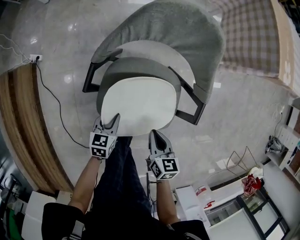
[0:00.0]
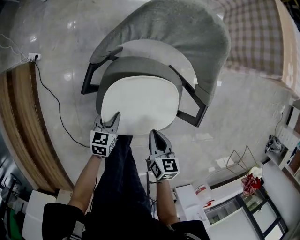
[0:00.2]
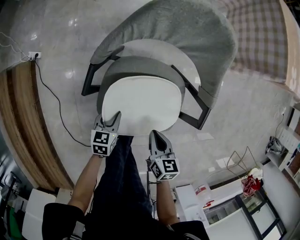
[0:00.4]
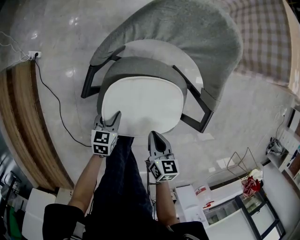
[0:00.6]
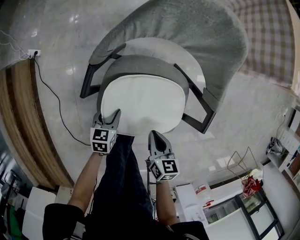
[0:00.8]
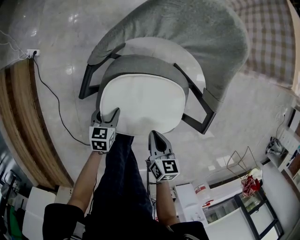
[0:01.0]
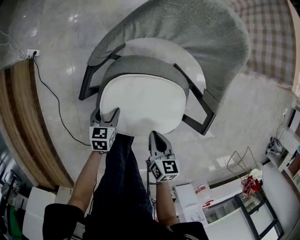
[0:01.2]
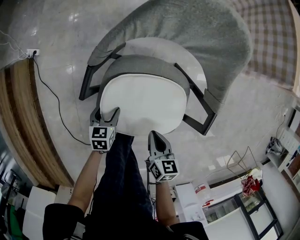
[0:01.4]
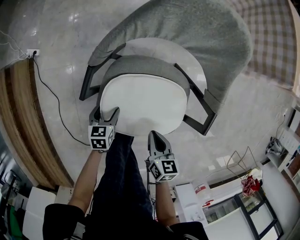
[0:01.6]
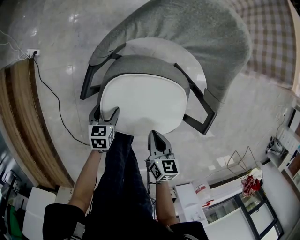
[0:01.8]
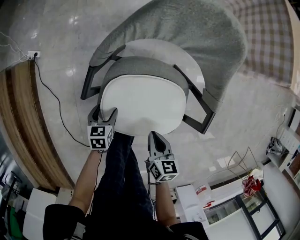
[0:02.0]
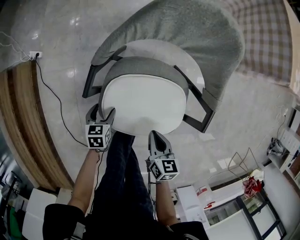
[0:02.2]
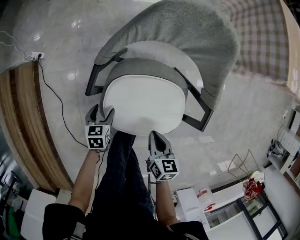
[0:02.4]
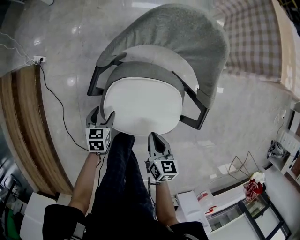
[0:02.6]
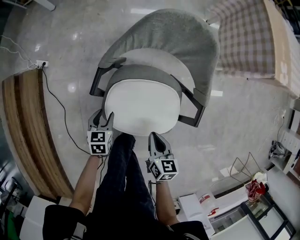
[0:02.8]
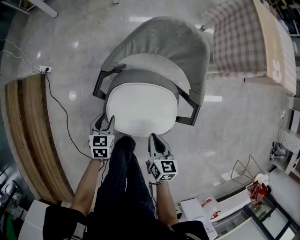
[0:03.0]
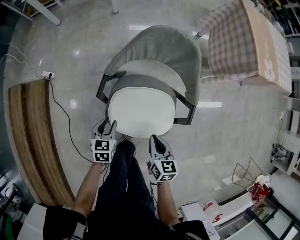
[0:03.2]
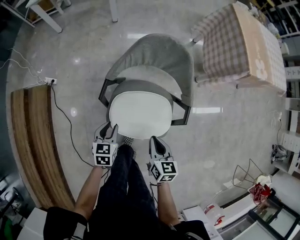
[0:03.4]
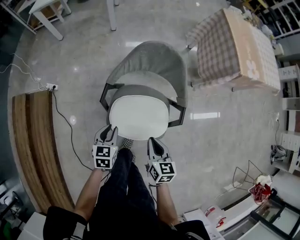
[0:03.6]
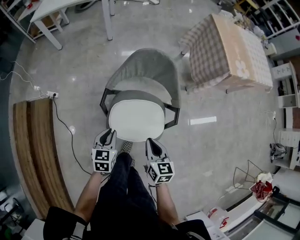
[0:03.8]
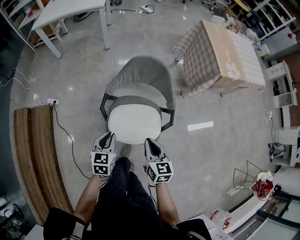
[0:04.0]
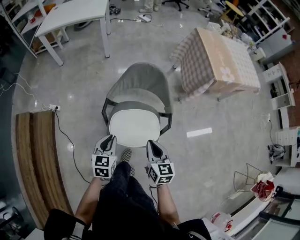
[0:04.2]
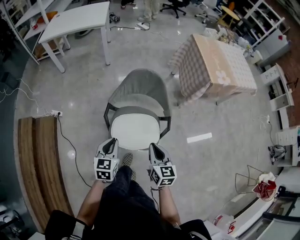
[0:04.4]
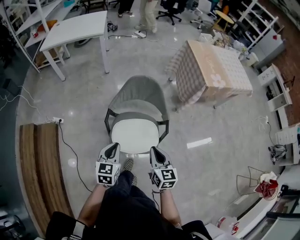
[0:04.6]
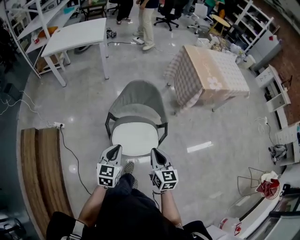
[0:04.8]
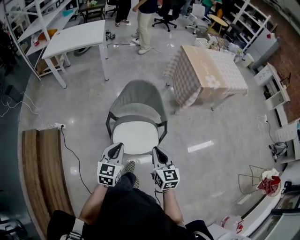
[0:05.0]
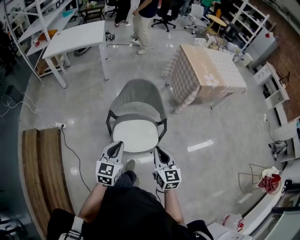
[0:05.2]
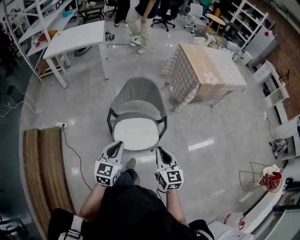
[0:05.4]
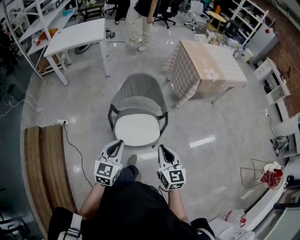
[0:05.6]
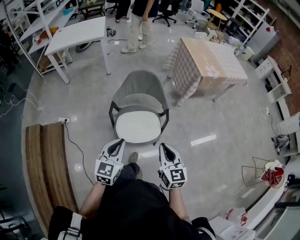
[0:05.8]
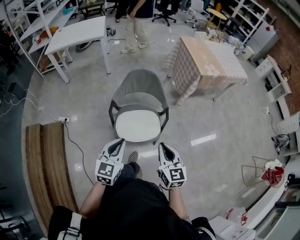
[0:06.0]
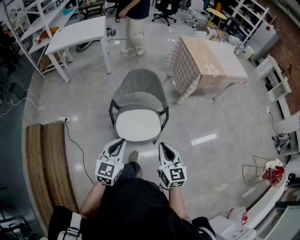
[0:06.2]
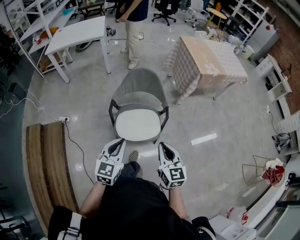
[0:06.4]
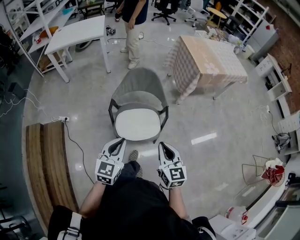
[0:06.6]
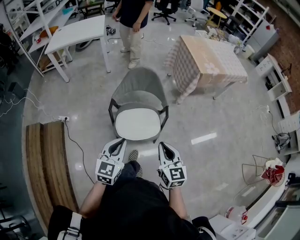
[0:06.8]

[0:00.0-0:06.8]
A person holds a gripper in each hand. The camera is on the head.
0:00.0 to 0:01.4: Both grippers move downward, about 10 cm. The left gripper opens its fingers.
0:01.4 to 0:02.8: The two grippers go approximately 10 cm upward.
0:02.8 to 0:04.0: Both grippers travel together upward, approximately 30 cm. The left gripper closes.
0:04.0 to 0:05.4: The grippers both shift upward and backward by some 25 cm. The left gripper turns by some 20 degrees.
0:05.4 to 0:06.8: The two grippers go some 5 cm backward.

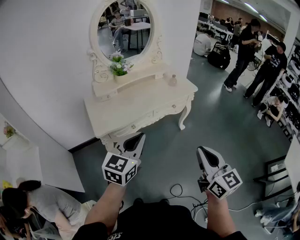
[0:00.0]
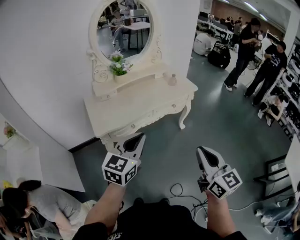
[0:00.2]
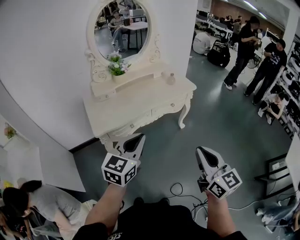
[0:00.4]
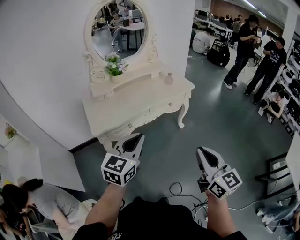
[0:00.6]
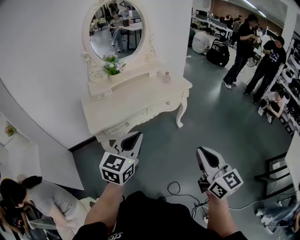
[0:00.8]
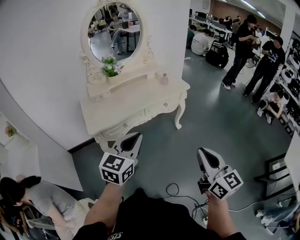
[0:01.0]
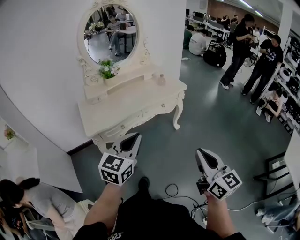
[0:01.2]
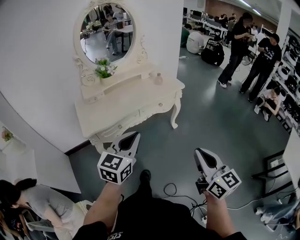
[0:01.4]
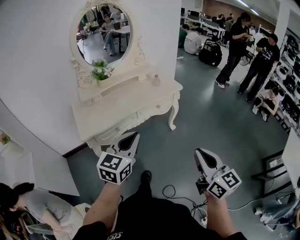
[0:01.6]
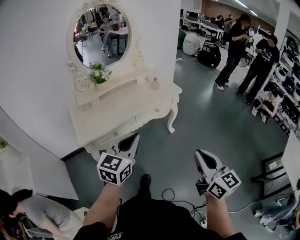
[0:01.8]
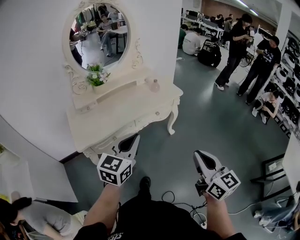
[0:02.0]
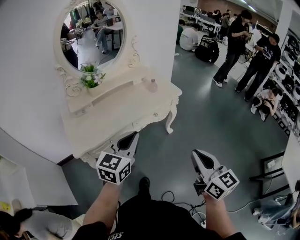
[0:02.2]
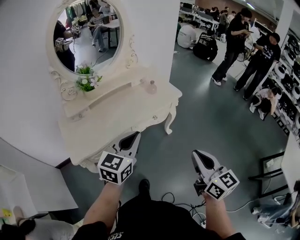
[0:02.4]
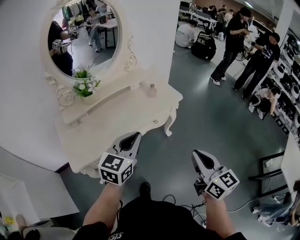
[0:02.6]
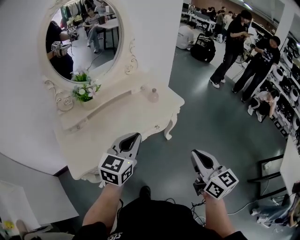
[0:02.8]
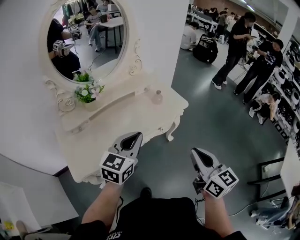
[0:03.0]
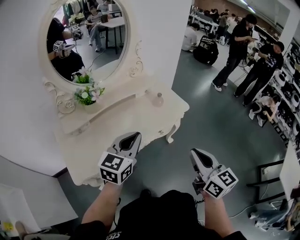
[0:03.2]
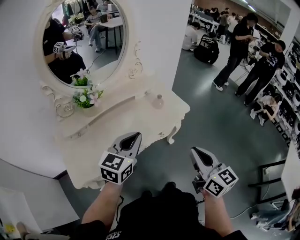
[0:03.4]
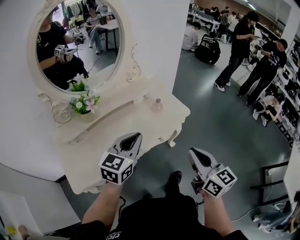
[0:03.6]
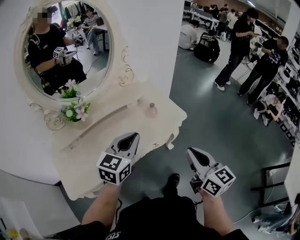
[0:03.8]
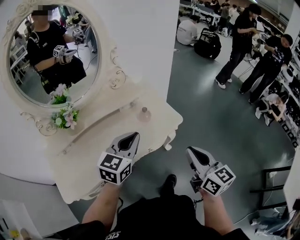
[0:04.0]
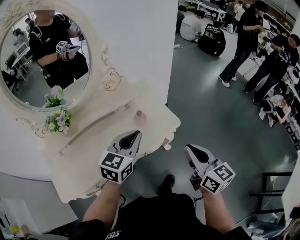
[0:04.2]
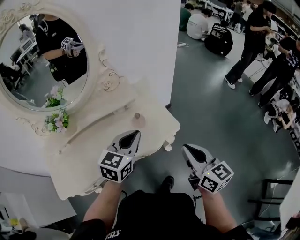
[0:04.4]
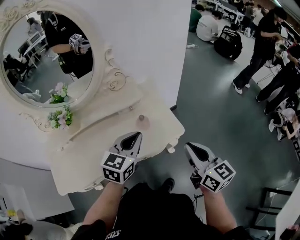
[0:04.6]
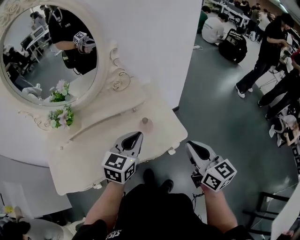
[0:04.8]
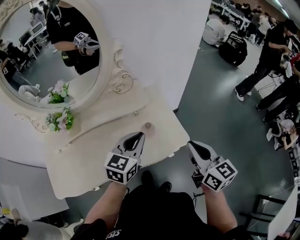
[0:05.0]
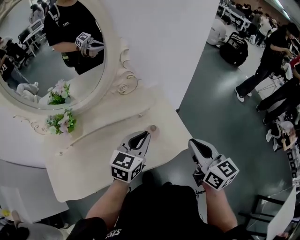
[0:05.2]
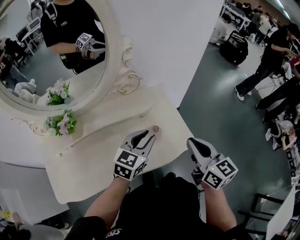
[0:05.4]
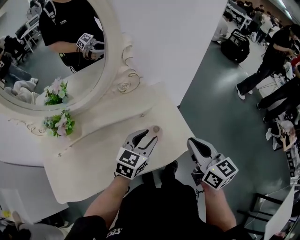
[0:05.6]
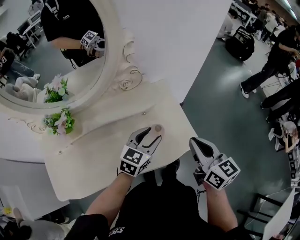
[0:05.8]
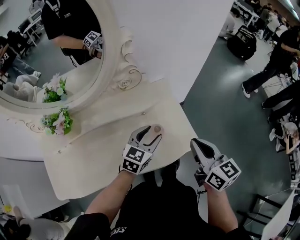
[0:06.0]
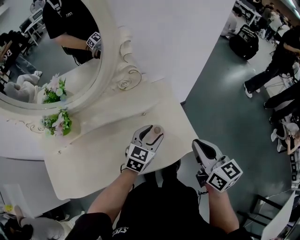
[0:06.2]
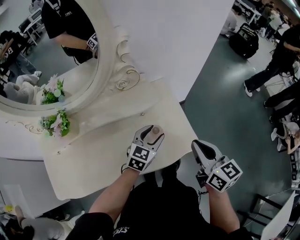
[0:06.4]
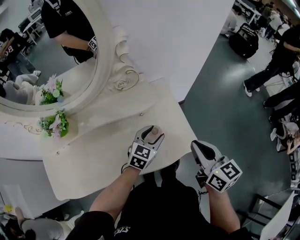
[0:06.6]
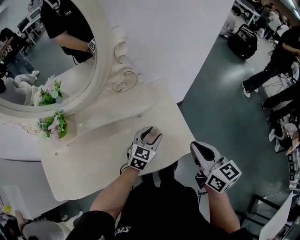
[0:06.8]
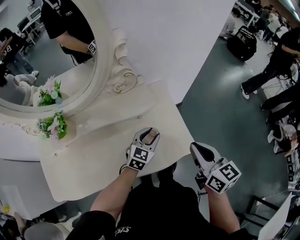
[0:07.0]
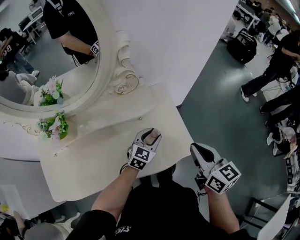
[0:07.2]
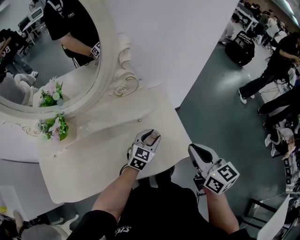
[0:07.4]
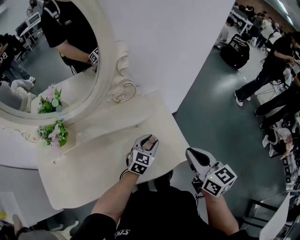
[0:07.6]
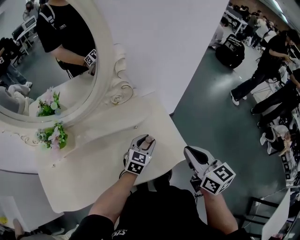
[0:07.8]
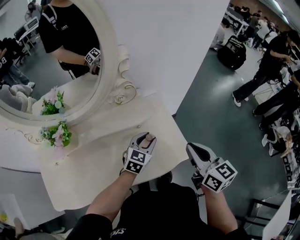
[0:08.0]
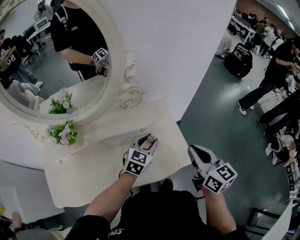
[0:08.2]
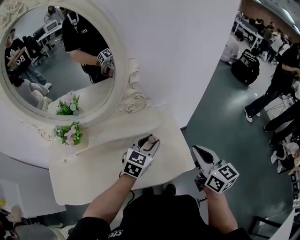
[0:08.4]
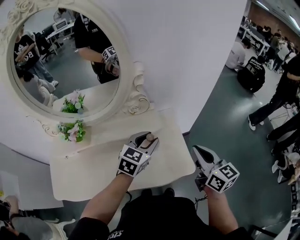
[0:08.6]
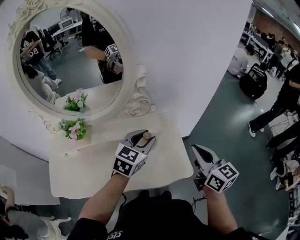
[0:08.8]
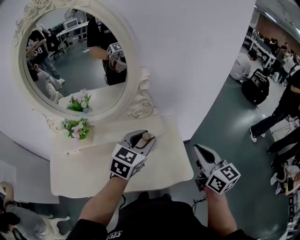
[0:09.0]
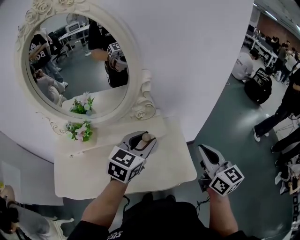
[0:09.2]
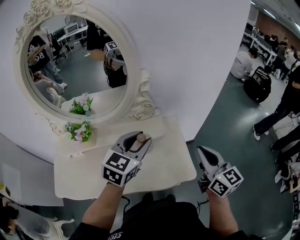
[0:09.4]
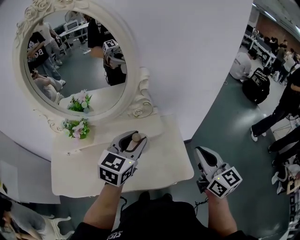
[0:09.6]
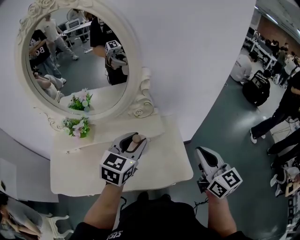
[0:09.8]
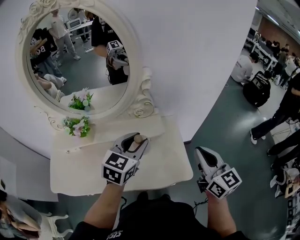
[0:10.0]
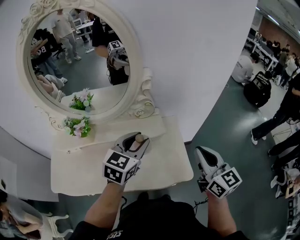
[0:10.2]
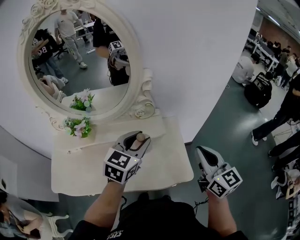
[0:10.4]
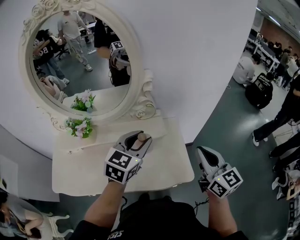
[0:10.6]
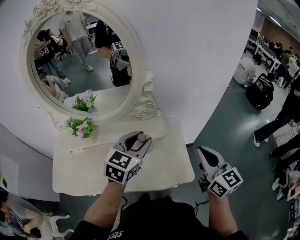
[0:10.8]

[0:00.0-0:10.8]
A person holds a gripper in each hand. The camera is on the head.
0:00.0 to 0:01.6: The two grippers go approximately 10 cm to the right.
0:01.6 to 0:03.0: Both grippers travel together forward, approximately 30 cm.
0:03.0 to 0:04.6: The two grippers go some 35 cm forward and to the right.
0:04.6 to 0:06.2: The right gripper shifts roughly 15 cm forward. Meanwhile the left gripper moves downward and forward, roughly 20 cm, and opens up.
0:06.2 to 0:07.8: The grippers stay close to where they were, moving slightly.
0:07.8 to 0:09.2: The right gripper goes some 10 cm upward and forward. Meanwhile the left gripper travels upward by about 25 cm.
0:09.2 to 0:10.8: The grippers stay close to where they were, moving slightly.

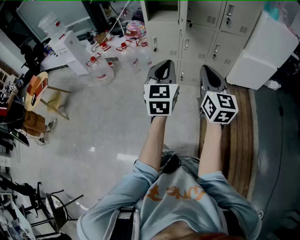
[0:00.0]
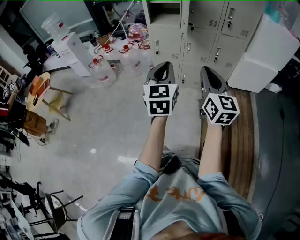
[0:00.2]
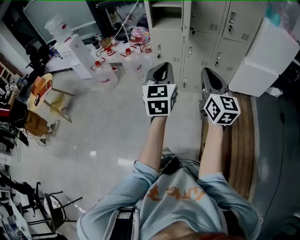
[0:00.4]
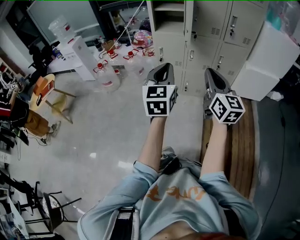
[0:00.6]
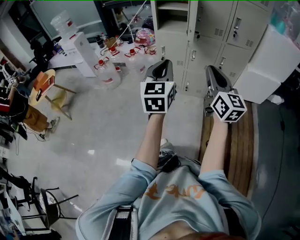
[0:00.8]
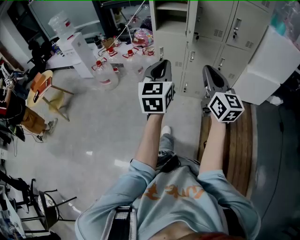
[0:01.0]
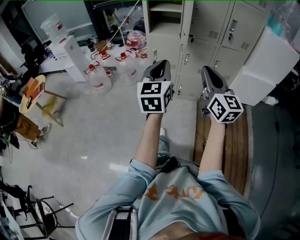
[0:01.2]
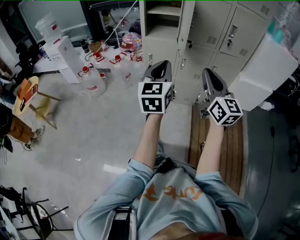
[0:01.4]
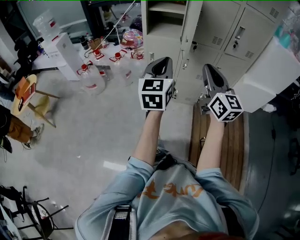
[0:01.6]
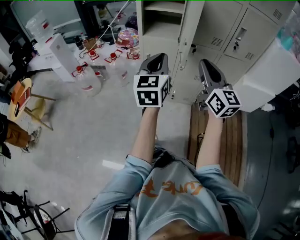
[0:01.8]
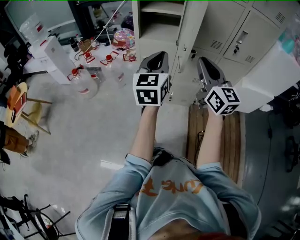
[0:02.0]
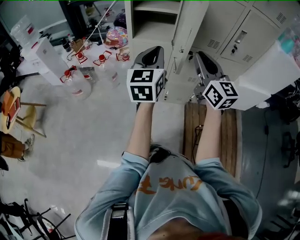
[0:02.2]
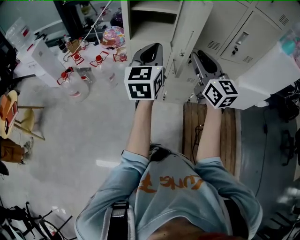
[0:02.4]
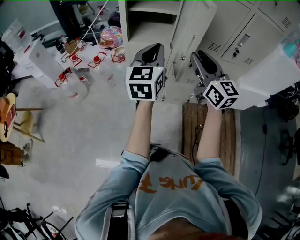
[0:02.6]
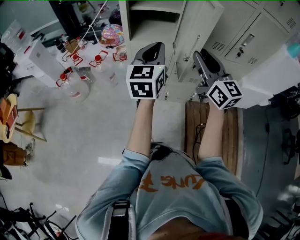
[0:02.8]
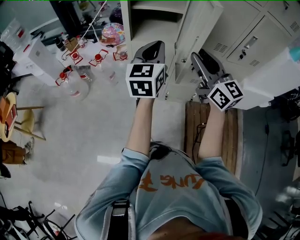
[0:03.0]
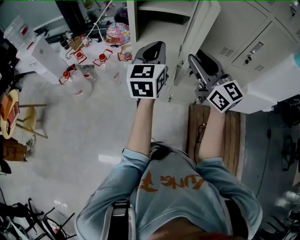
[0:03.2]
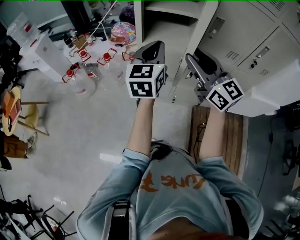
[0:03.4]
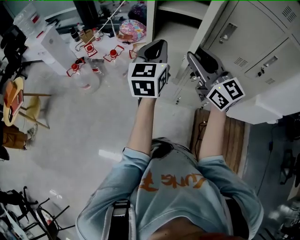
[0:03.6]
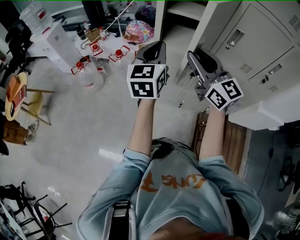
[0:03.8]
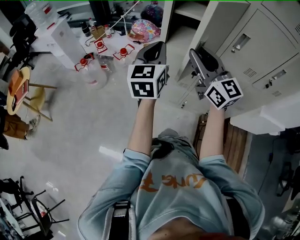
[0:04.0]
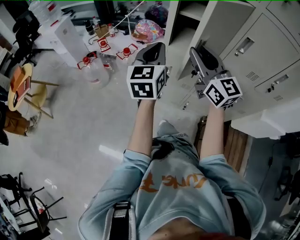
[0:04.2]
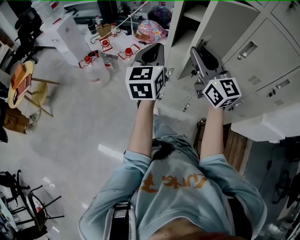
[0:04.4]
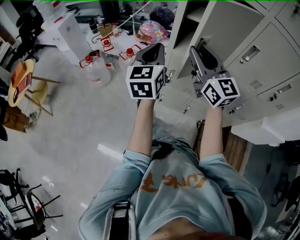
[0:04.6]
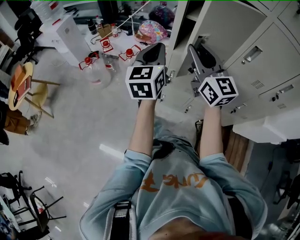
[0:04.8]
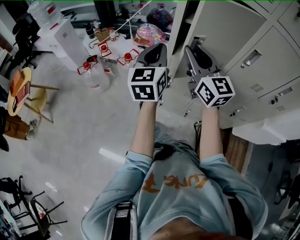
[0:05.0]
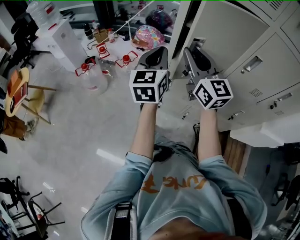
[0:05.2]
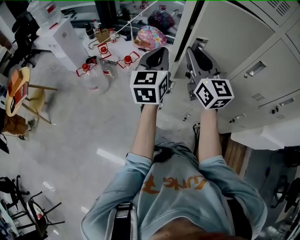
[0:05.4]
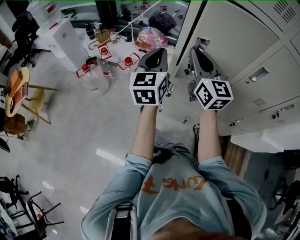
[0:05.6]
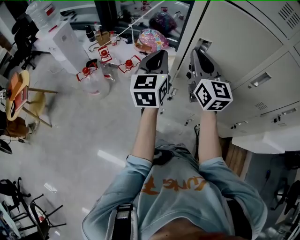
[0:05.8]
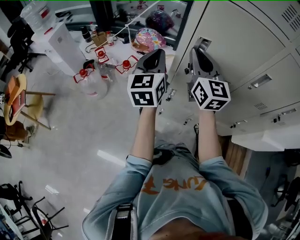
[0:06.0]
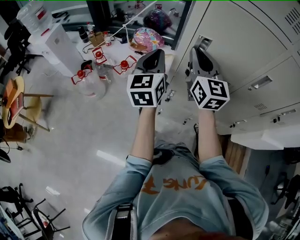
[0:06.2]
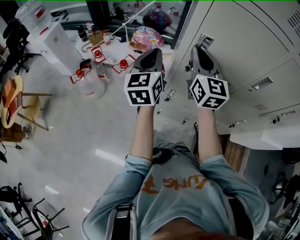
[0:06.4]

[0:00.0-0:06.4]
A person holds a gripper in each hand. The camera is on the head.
0:00.0 to 0:01.6: Both grippers move forward, some 15 cm.
0:01.6 to 0:03.2: Both grippers travel together forward, approximately 25 cm. The right gripper opens its fingers.
0:03.2 to 0:04.8: The right gripper is displaced forward and to the left by roughly 20 cm; the left gripper moves to the left and forward, some 15 cm.
0:04.8 to 0:06.4: The grippers both shift forward by roughly 15 cm.
